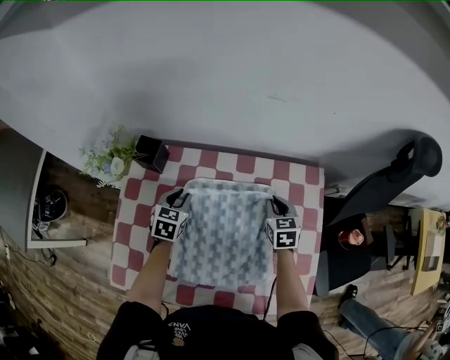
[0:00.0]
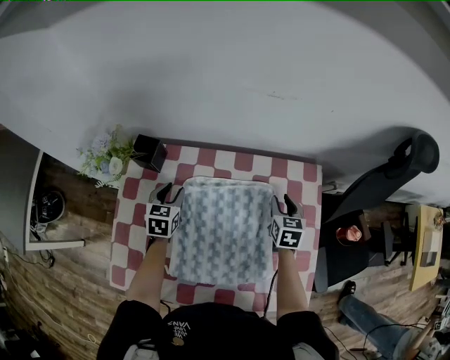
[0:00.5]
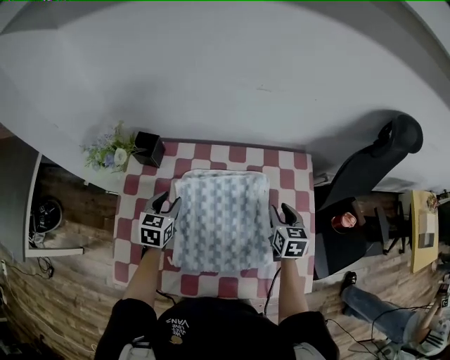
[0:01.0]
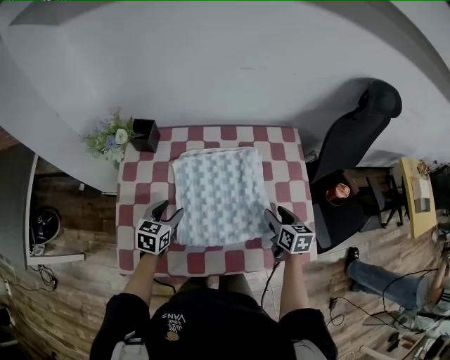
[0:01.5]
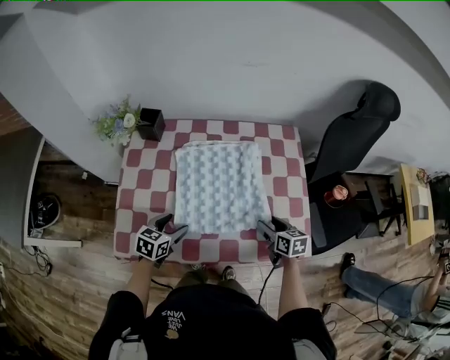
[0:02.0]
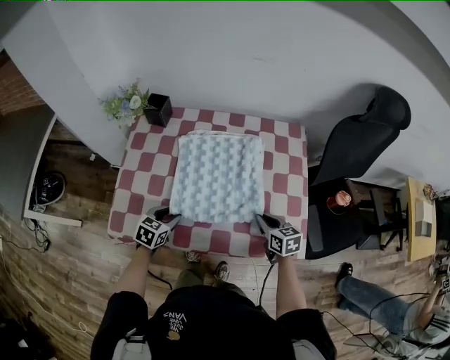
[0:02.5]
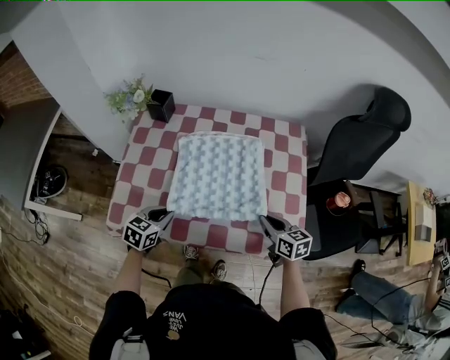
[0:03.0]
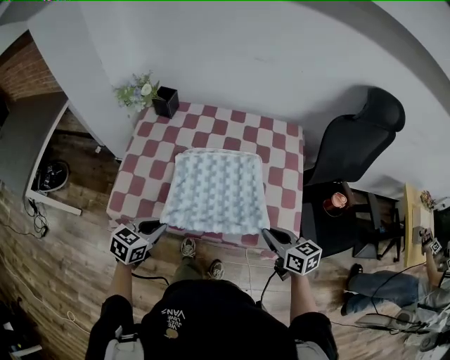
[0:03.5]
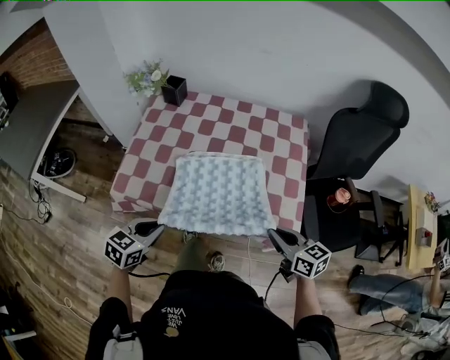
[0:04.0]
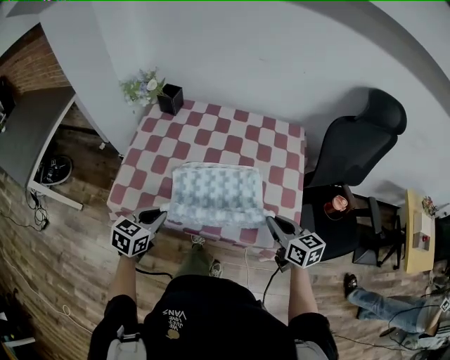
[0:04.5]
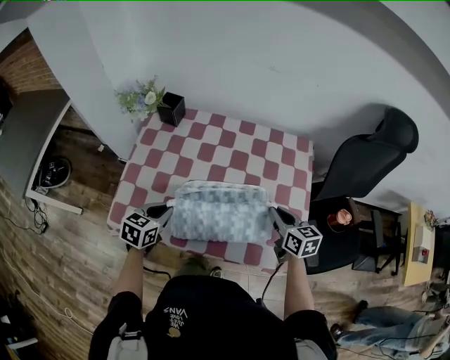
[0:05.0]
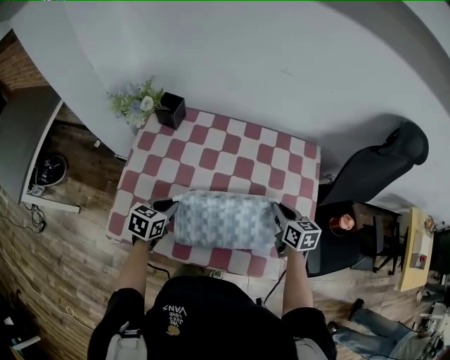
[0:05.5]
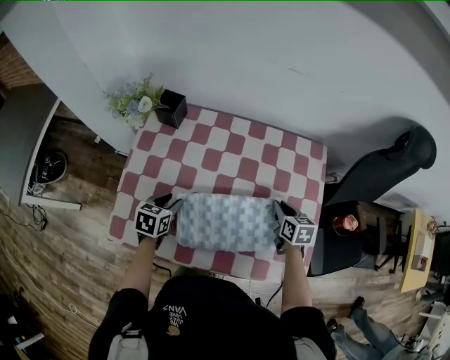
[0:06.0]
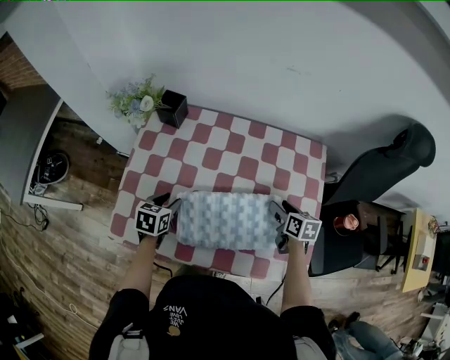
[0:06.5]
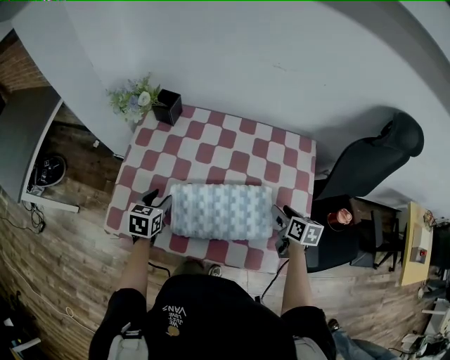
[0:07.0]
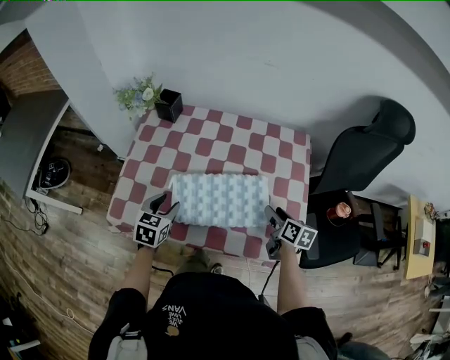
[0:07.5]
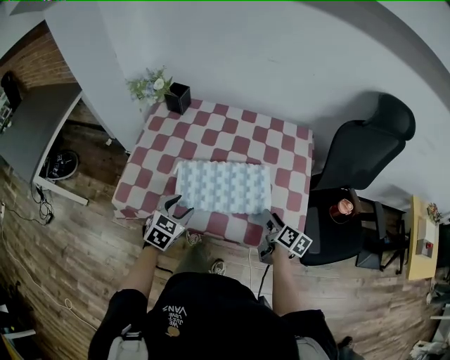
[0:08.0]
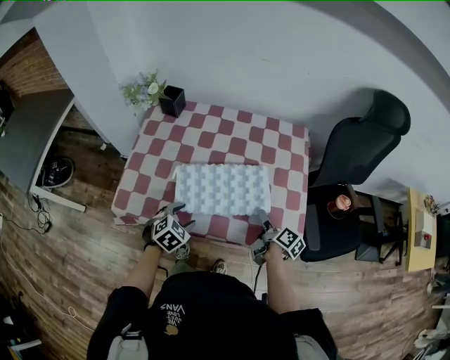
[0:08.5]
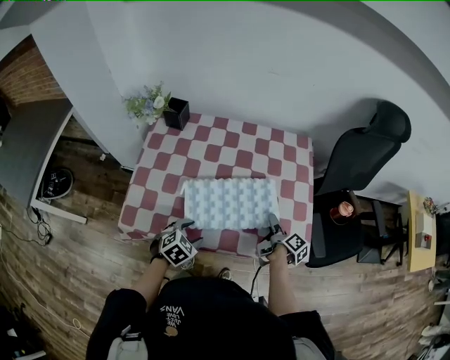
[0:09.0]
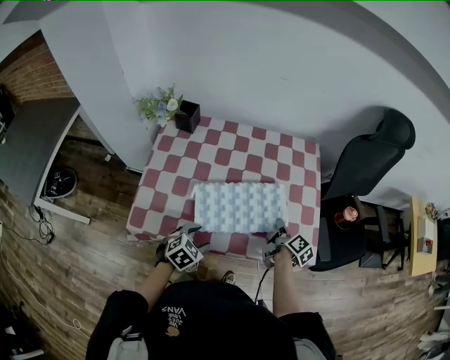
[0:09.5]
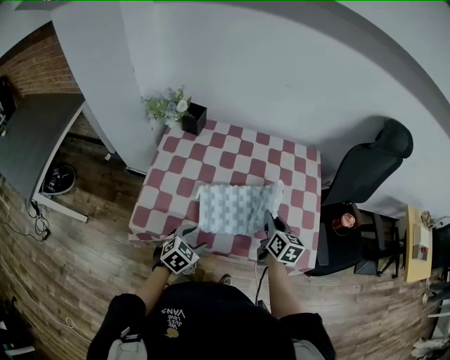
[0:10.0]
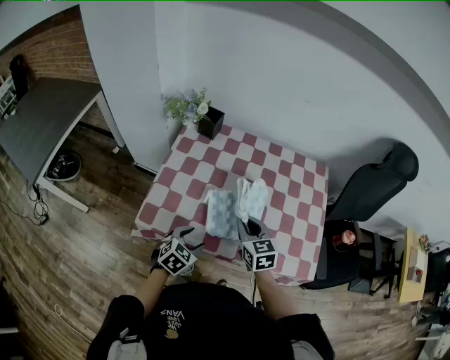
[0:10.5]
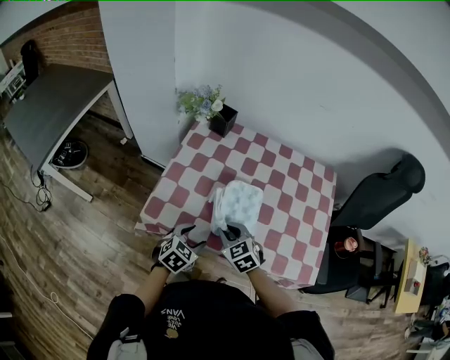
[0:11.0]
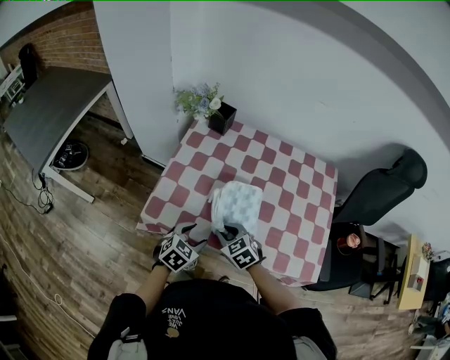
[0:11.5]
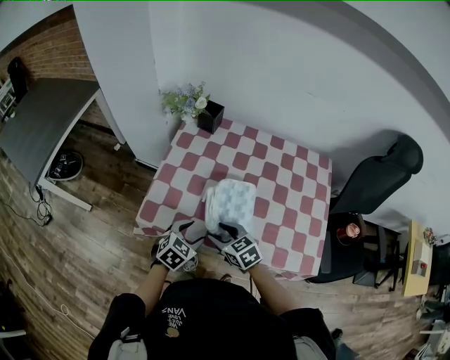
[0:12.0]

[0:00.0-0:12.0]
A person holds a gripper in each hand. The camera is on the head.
0:00.0 to 0:02.0: The two grippers go some 25 cm backward. The right gripper changes its angle by roughly 20 degrees, and opens; the left gripper turns by some 20 degrees, and opens its fingers.
0:02.0 to 0:04.0: Both grippers travel together backward and upward, roughly 20 cm. The right gripper changes its angle by approximately 30 degrees, and closes, while the left gripper closes up.
0:04.0 to 0:06.0: Both grippers move forward, some 30 cm. The right gripper changes its angle by about 30 degrees.
0:06.0 to 0:08.0: The right gripper moves backward, roughly 15 cm, rotates approximately 40 degrees, and opens up. Meanwhile the left gripper shifts approximately 15 cm backward and to the right, and turns by roughly 30 degrees.
0:08.0 to 0:10.0: The left gripper shifts by about 5 cm. Meanwhile the right gripper goes approximately 15 cm to the left and upward, swivels roughly 30 degrees, and closes up.
0:10.0 to 0:12.0: The right gripper ends up approximately 25 cm from where it was, changes its angle by about 60 degrees, and opens up.

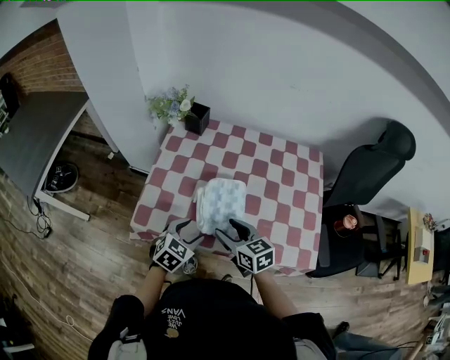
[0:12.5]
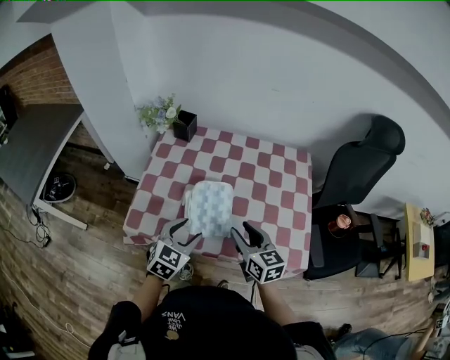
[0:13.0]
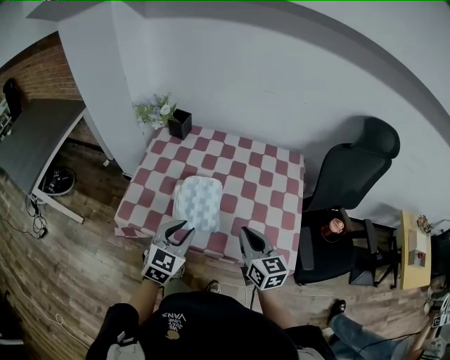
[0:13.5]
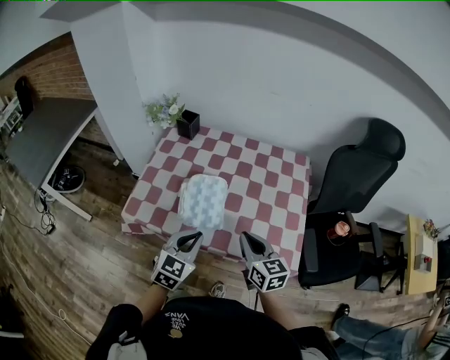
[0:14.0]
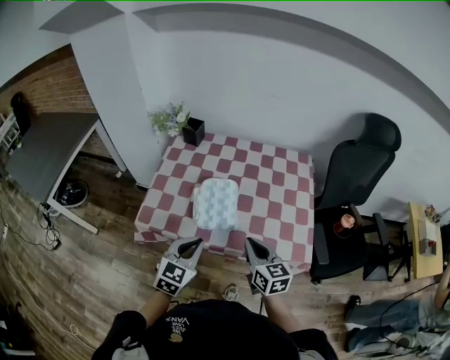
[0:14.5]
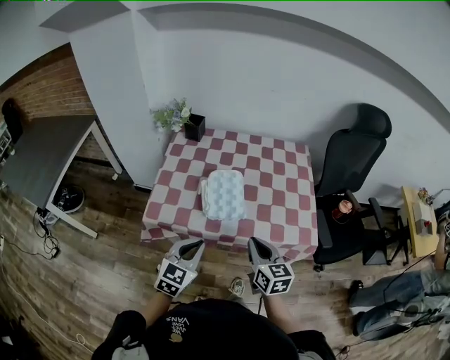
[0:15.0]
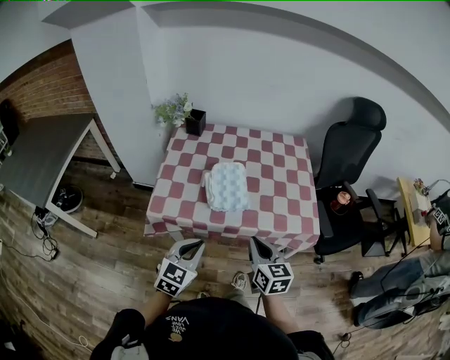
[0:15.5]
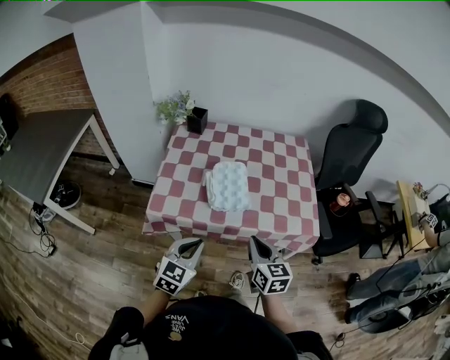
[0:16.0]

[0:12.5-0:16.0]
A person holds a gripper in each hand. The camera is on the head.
0:12.5 to 0:14.5: The right gripper travels to the right, backward and upward by about 15 cm, and closes up, while the left gripper is displaced upward and backward by about 15 cm, turns by roughly 20 degrees, and closes its fingers.
0:14.5 to 0:16.0: The two grippers go some 10 cm backward and to the left.

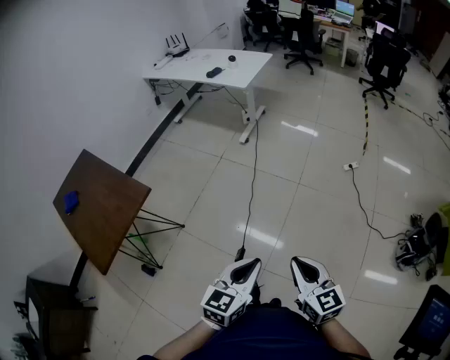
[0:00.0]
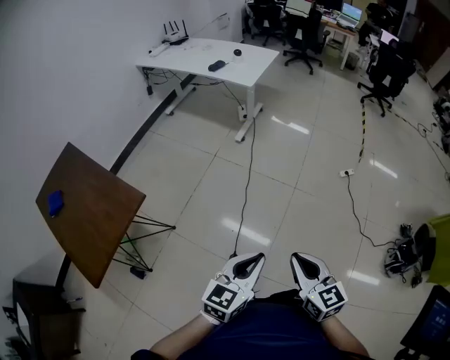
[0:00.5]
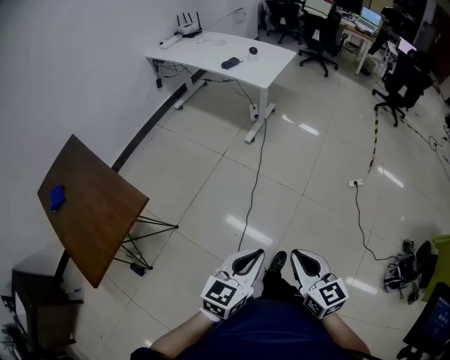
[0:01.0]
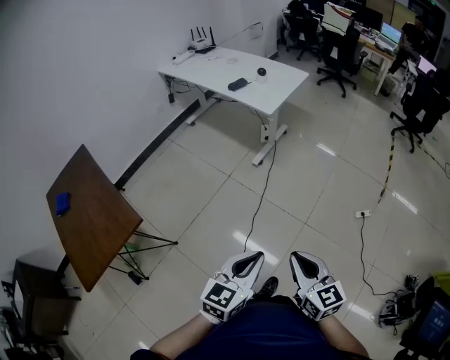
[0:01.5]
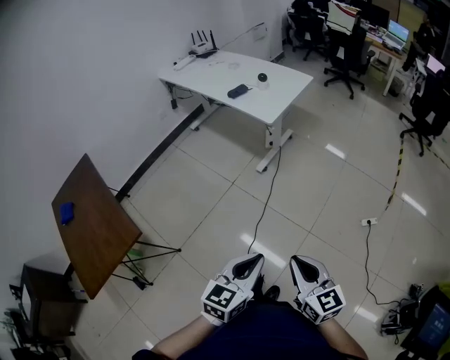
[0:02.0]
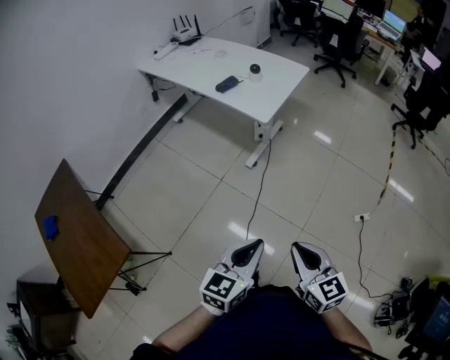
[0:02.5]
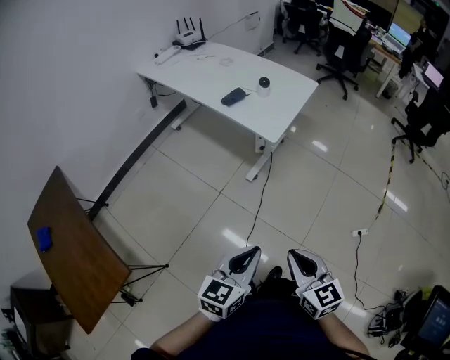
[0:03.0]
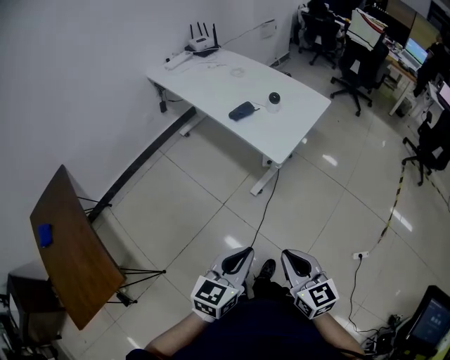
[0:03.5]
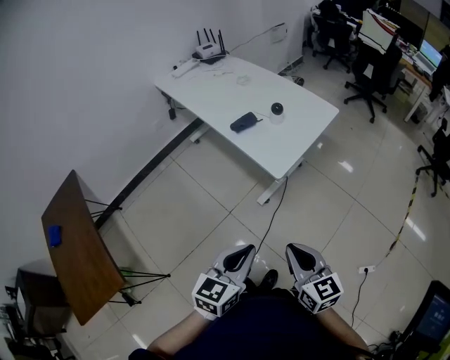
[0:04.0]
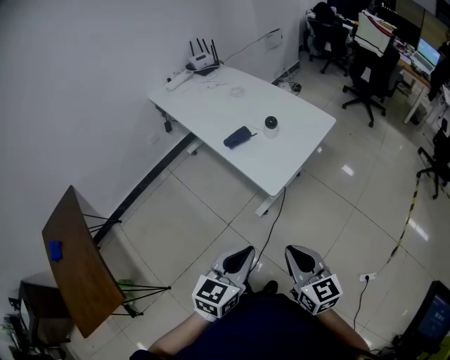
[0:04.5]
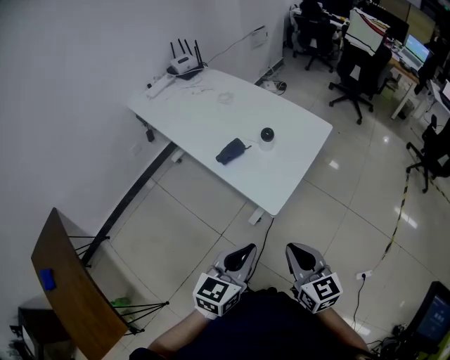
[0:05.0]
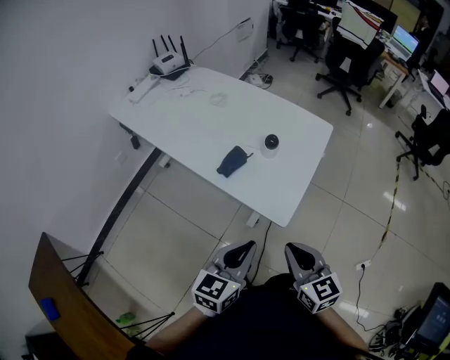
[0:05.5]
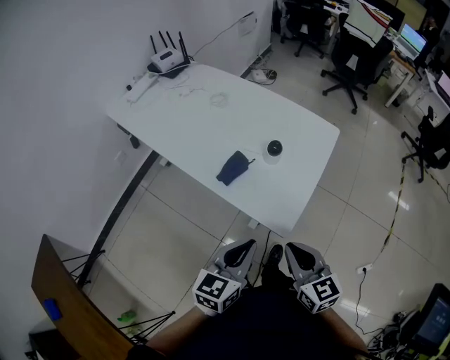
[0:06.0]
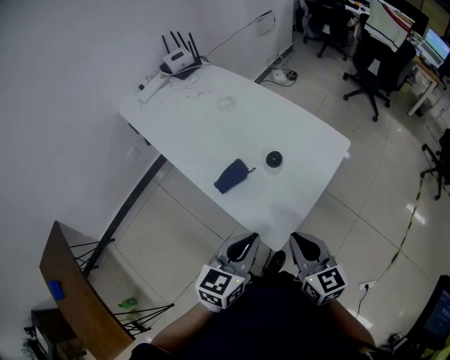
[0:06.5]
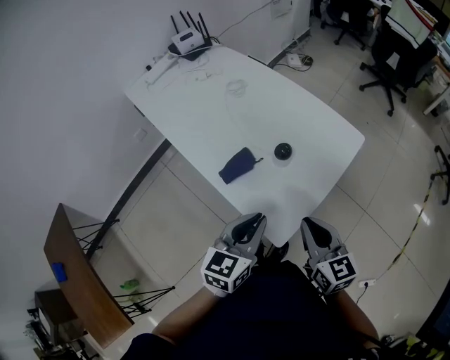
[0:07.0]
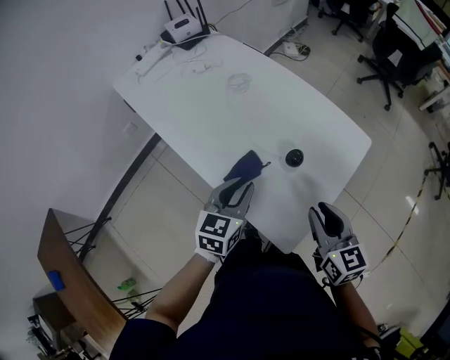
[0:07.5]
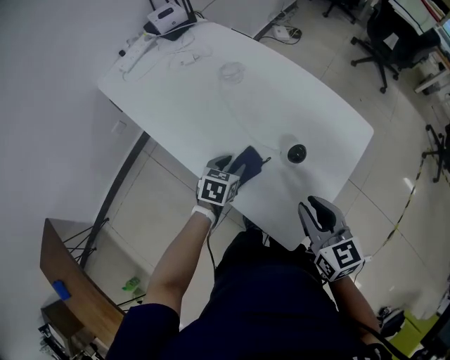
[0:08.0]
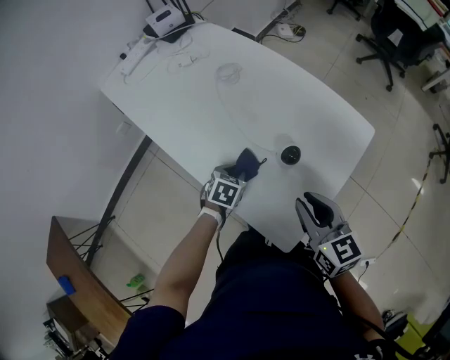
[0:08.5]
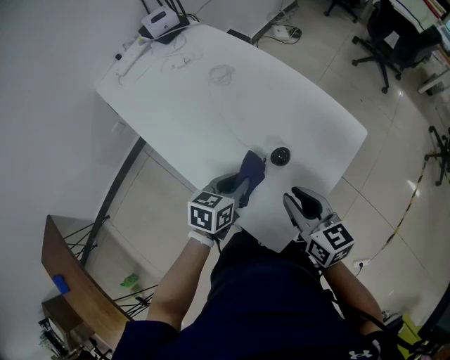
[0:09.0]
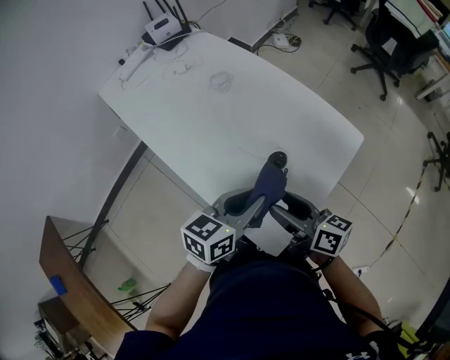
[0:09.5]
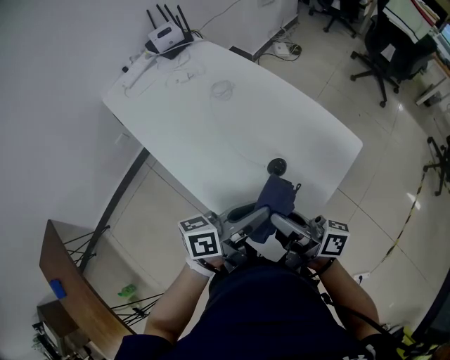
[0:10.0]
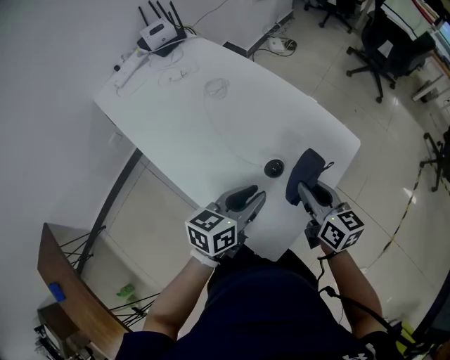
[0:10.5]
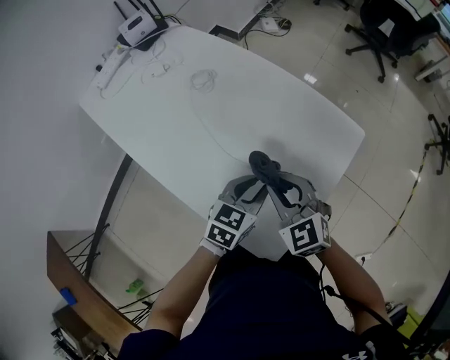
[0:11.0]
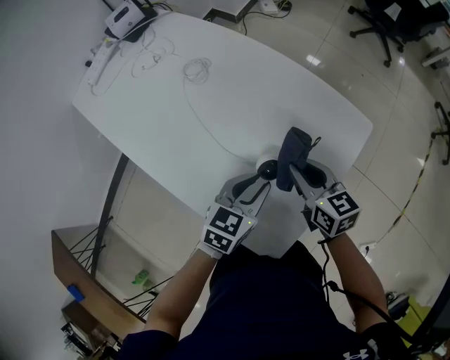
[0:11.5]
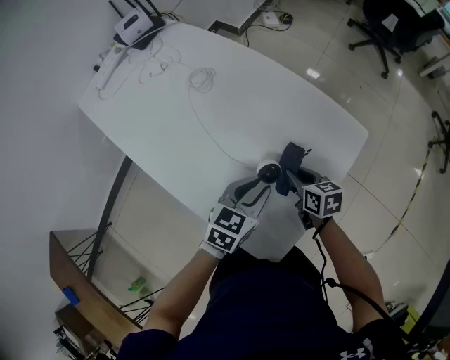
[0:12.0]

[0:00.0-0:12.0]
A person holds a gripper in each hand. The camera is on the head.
0:00.0 to 0:02.0: Both grippers travel together forward, some 40 cm.
0:02.0 to 0:04.0: Both grippers move forward, about 35 cm.
0:04.0 to 0:06.0: Both grippers travel together forward, roughly 30 cm.
0:06.0 to 0:08.0: The right gripper is displaced forward by roughly 20 cm, and opens; the left gripper is displaced forward and downward by some 35 cm, tilts its fingers about 30 degrees downward, and opens up.
0:08.0 to 0:10.0: The right gripper angles its fingers upward, by some 30 degrees, and opens, then closes again. Meanwhile the left gripper is displaced upward, to the right and backward by about 25 cm, points its fingers approximately 50 degrees further upward, and closes up.
0:10.0 to 0:12.0: The right gripper heads downward and forward, covering some 25 cm, and tilts its fingers roughly 50 degrees downward. Meanwhile the left gripper shifts about 15 cm downward and forward, and points its fingers some 30 degrees further downward.
